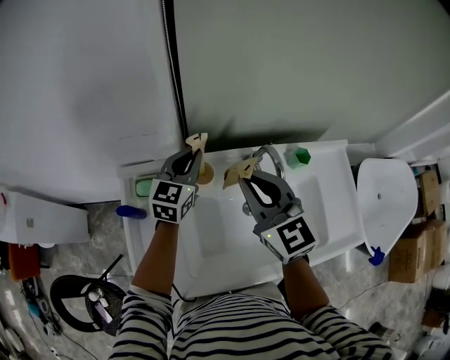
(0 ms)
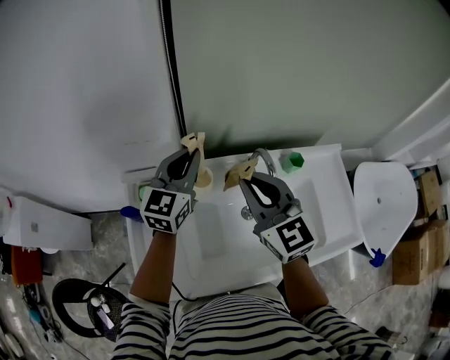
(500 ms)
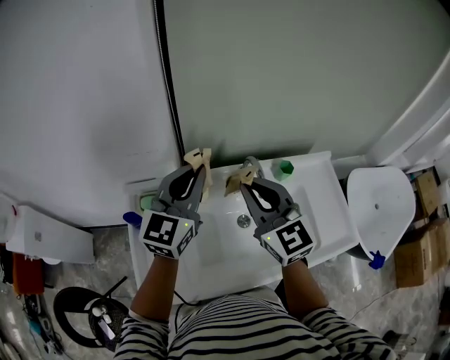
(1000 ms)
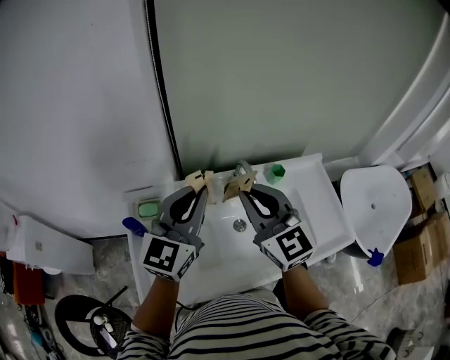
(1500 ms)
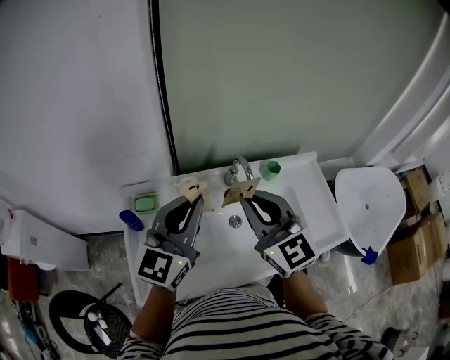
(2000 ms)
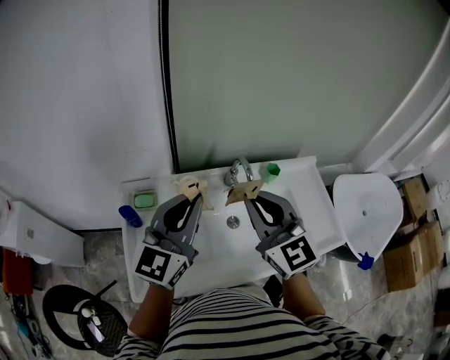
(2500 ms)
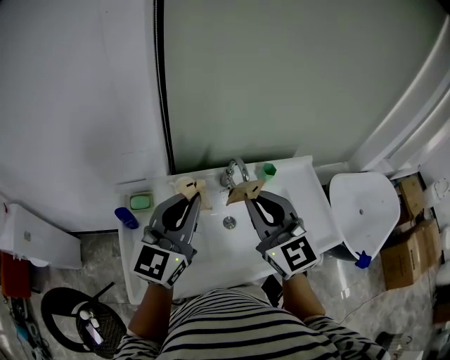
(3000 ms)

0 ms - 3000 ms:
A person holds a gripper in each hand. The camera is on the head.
0 ms - 1500 ms: The left gripper travels upward and backward by some 25 cm, and rotates approximately 20 degrees. Meanwhile the right gripper shifts about 10 cm upward and backward.
1500 ms - 3000 ms: The grippers stay close to where they were, moving slightly.

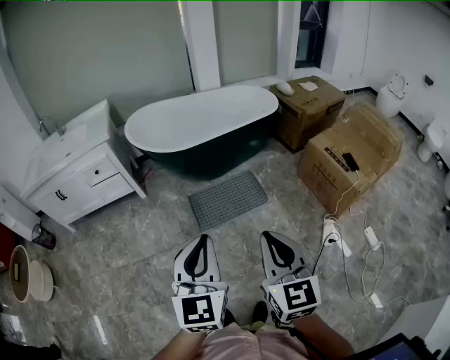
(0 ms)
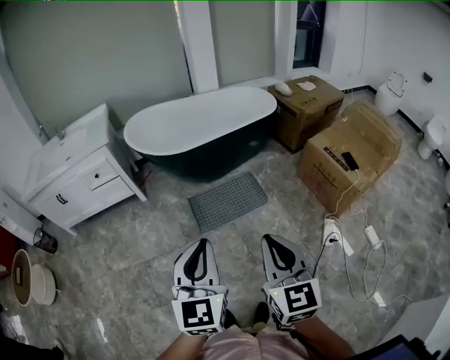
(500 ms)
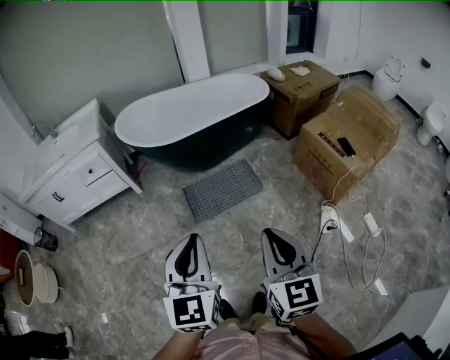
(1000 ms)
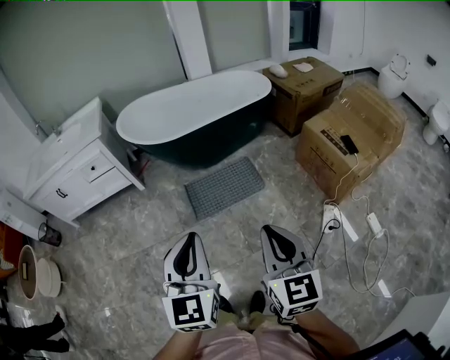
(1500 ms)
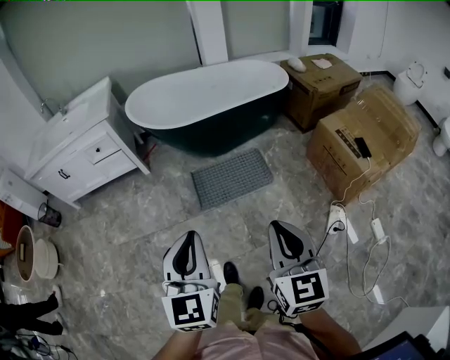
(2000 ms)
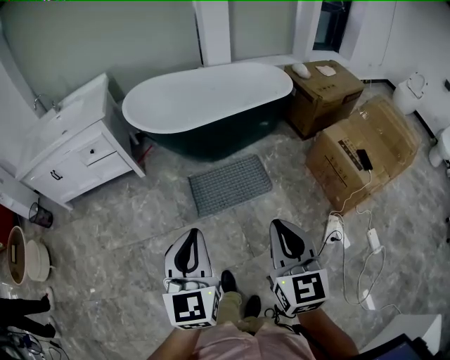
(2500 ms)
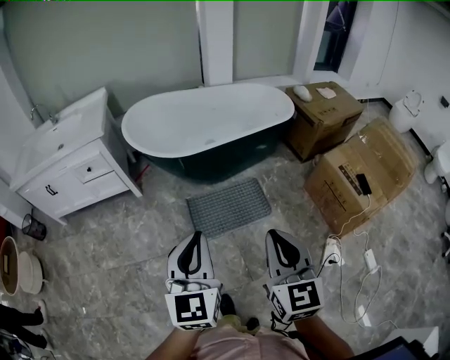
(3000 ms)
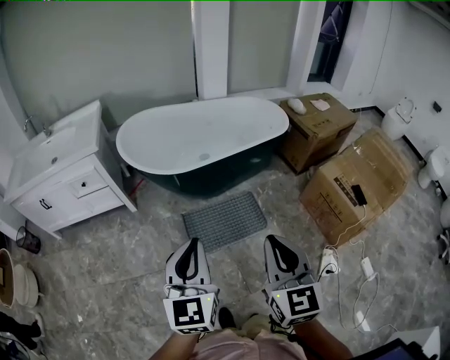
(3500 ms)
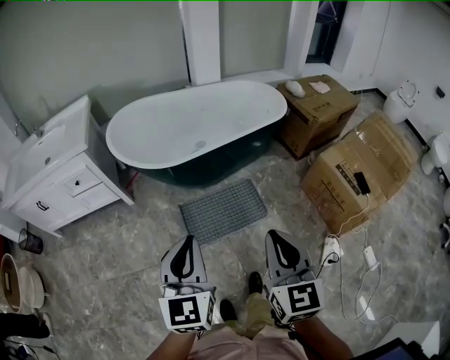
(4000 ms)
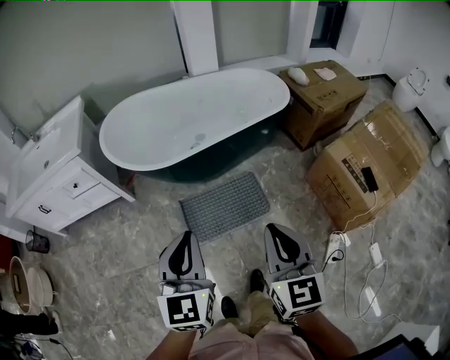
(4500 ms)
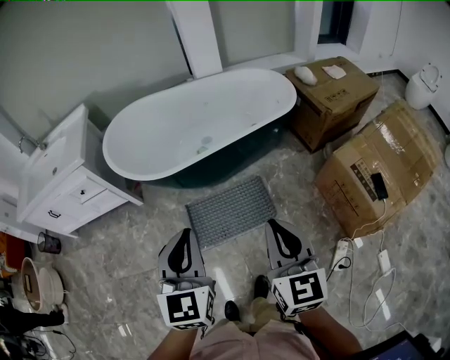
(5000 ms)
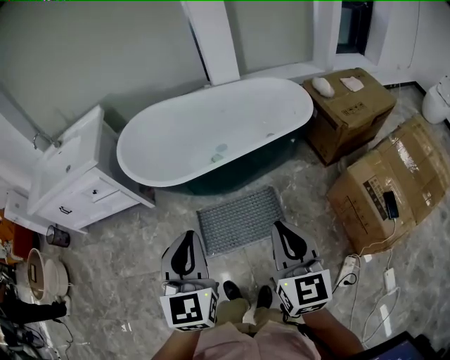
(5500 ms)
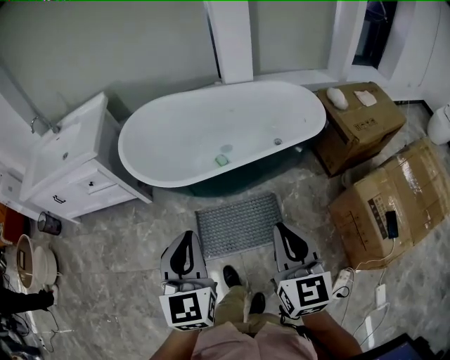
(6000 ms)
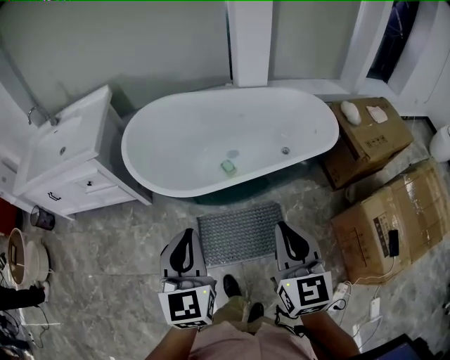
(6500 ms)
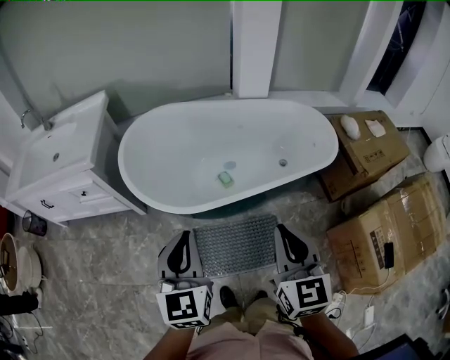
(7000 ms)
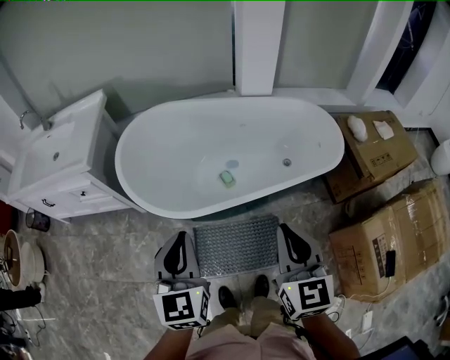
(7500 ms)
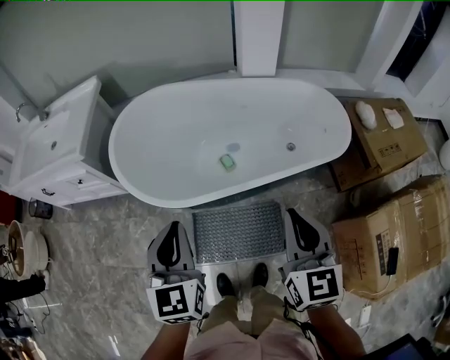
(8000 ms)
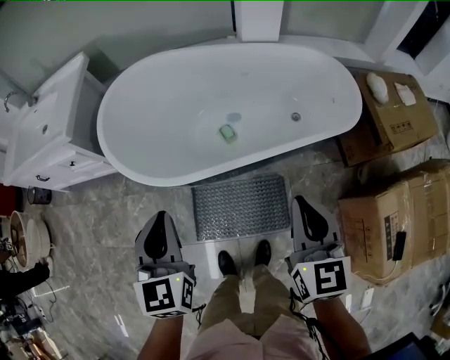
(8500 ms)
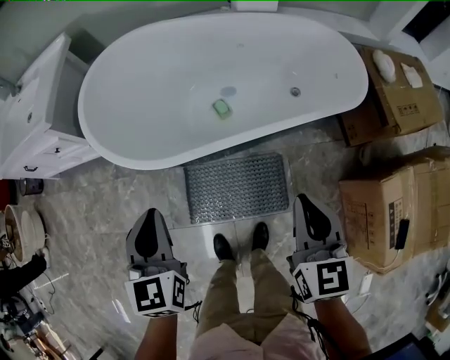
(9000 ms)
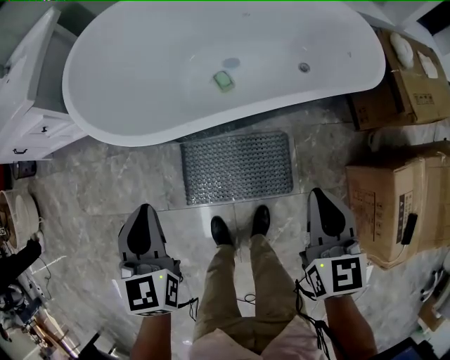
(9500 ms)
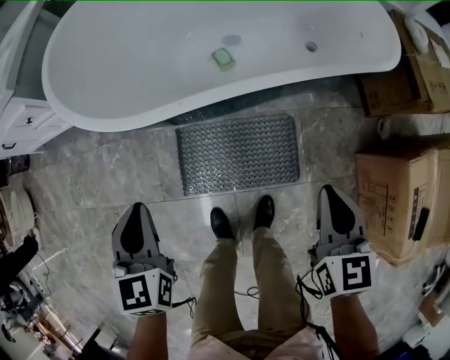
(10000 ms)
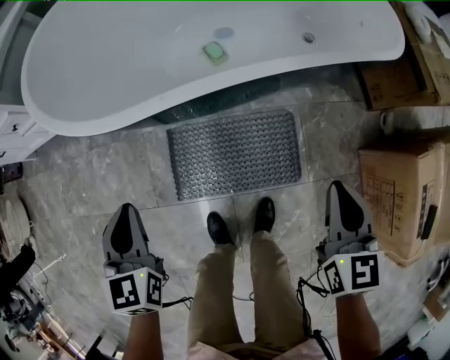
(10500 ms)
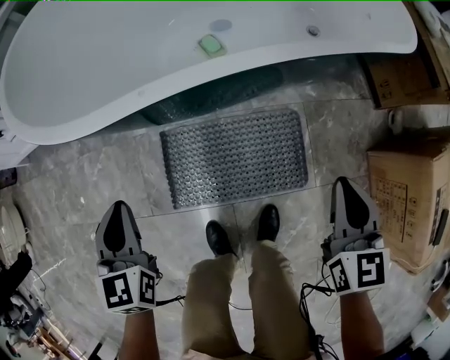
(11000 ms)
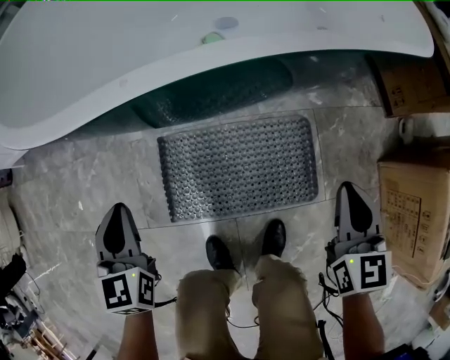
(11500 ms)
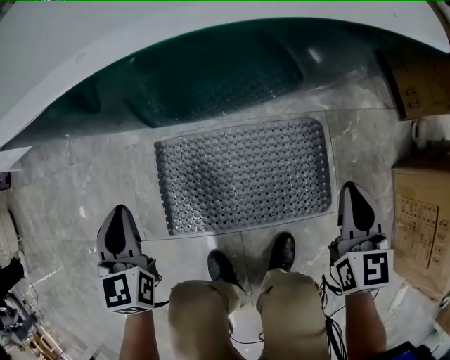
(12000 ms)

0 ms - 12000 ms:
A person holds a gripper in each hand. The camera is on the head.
0 ms - 2000 ms: The right gripper travels to the right by roughly 5 cm.
2000 ms - 4000 ms: Both grippers travel together forward, about 25 cm.
4000 ms - 6000 ms: The left gripper shifts some 20 cm forward; the right gripper goes roughly 25 cm forward and to the right.
6000 ms - 8000 ms: Both grippers move forward, roughly 20 cm.
8000 ms - 10000 ms: Both grippers move downward, some 30 cm.
10000 ms - 12000 ms: Both grippers travel together downward, roughly 30 cm.

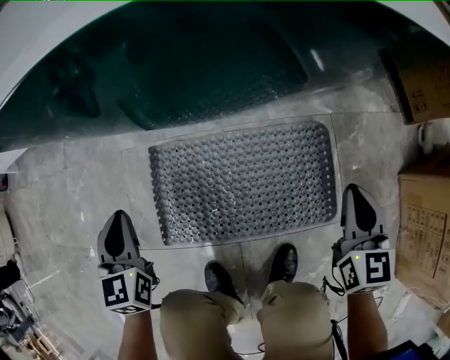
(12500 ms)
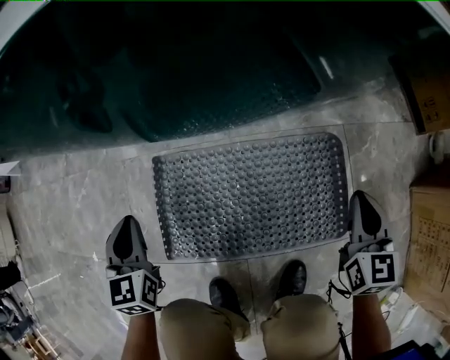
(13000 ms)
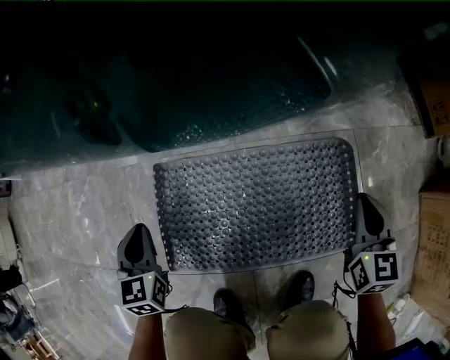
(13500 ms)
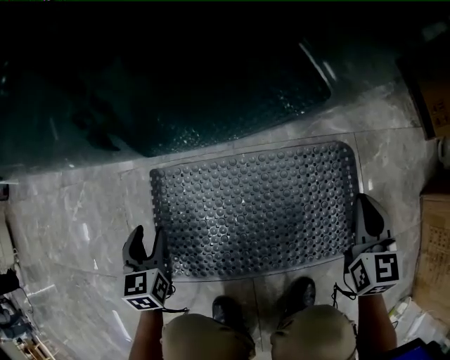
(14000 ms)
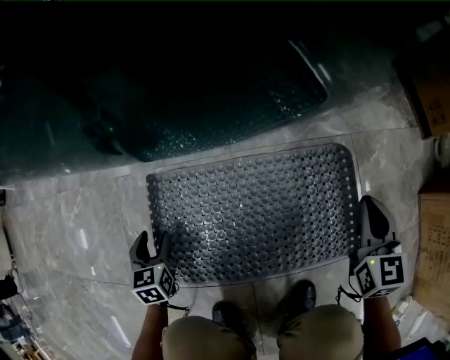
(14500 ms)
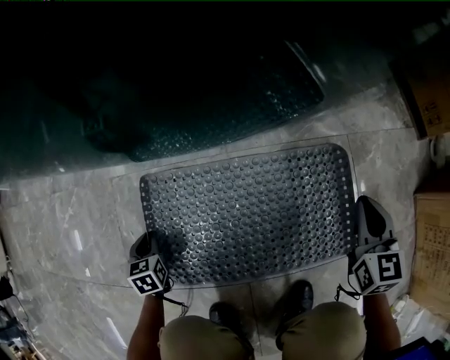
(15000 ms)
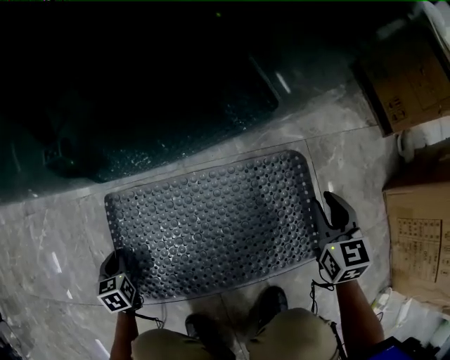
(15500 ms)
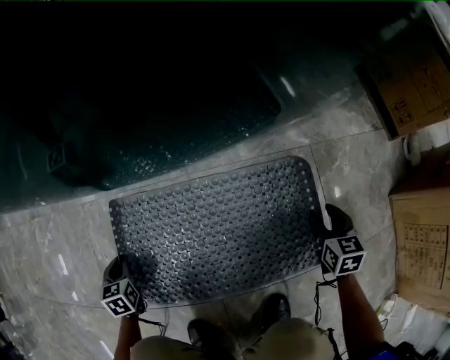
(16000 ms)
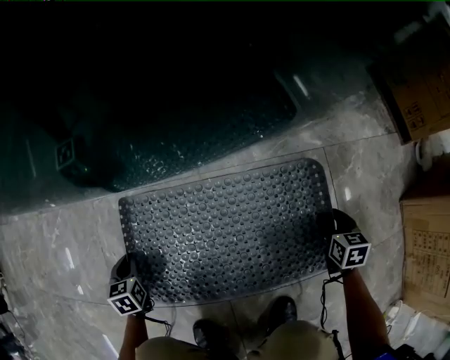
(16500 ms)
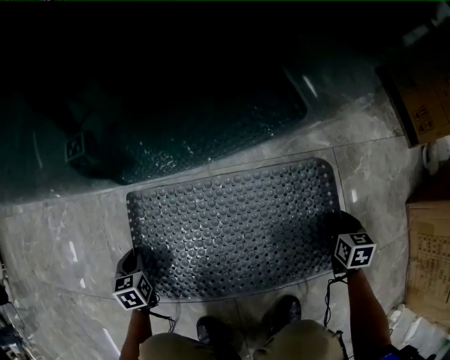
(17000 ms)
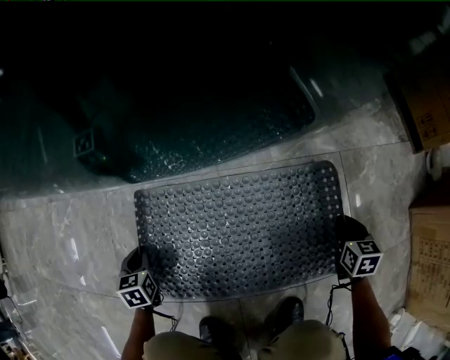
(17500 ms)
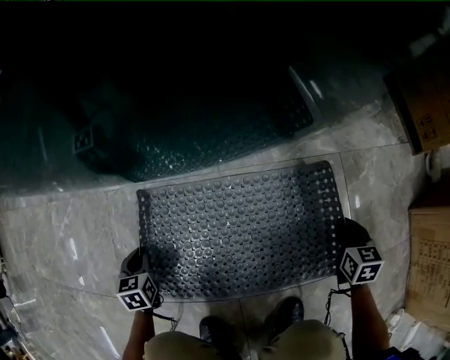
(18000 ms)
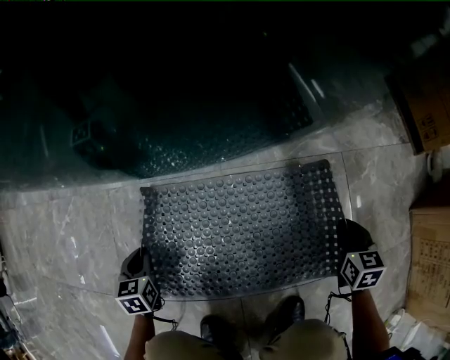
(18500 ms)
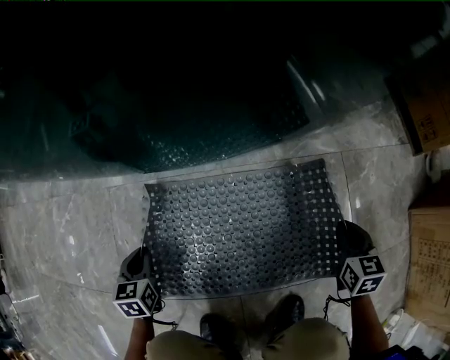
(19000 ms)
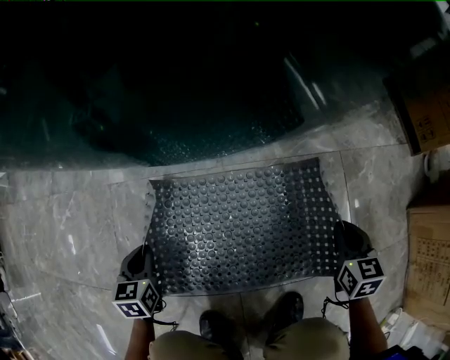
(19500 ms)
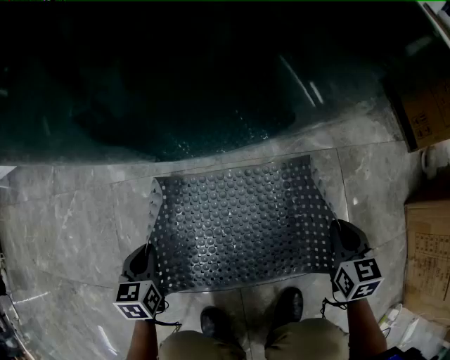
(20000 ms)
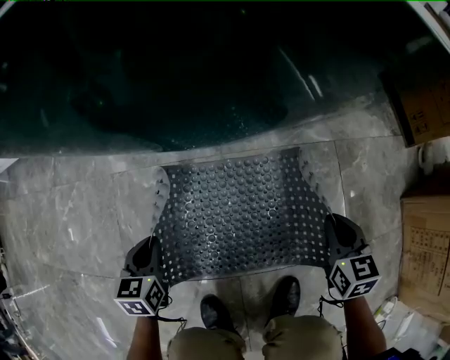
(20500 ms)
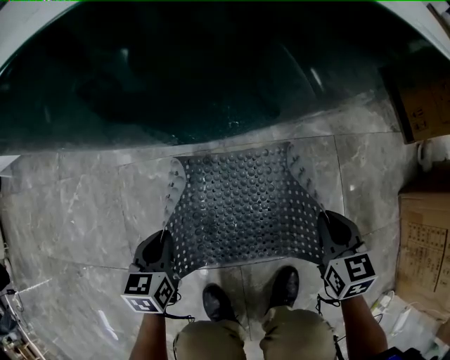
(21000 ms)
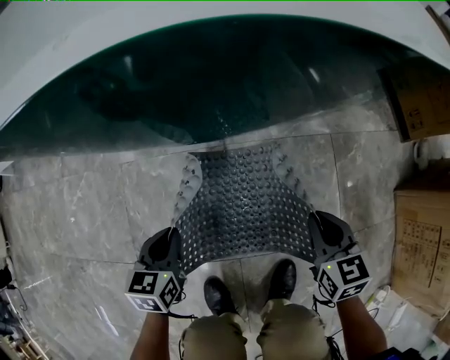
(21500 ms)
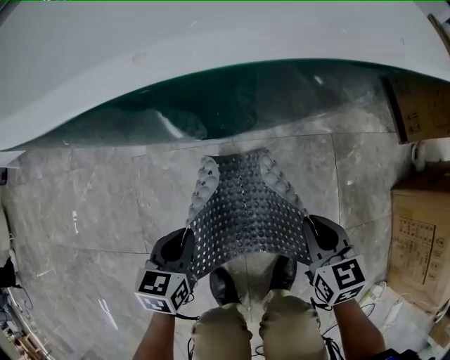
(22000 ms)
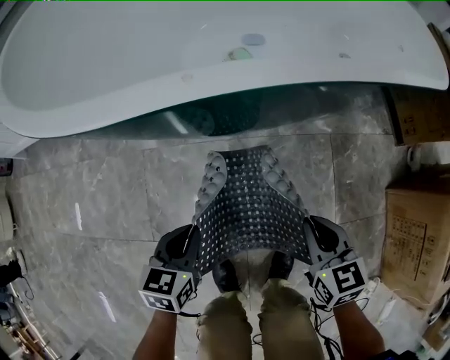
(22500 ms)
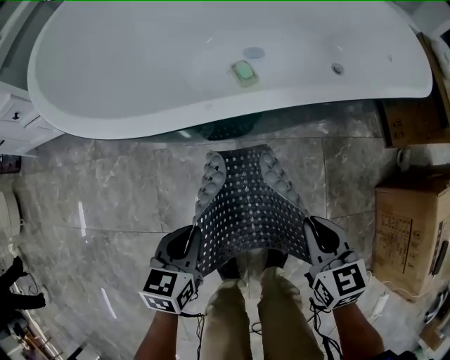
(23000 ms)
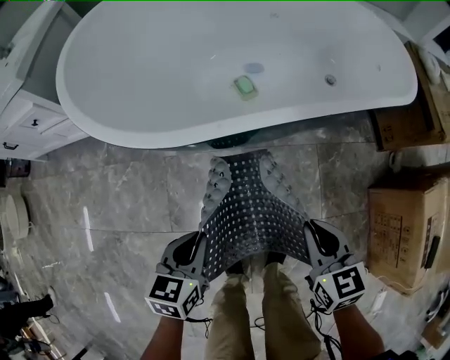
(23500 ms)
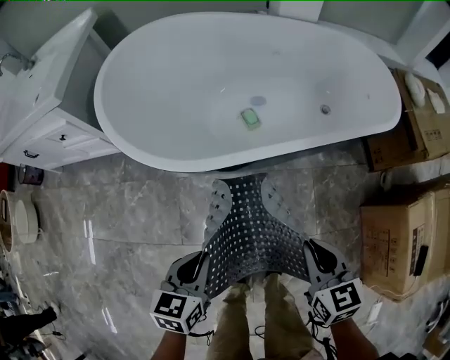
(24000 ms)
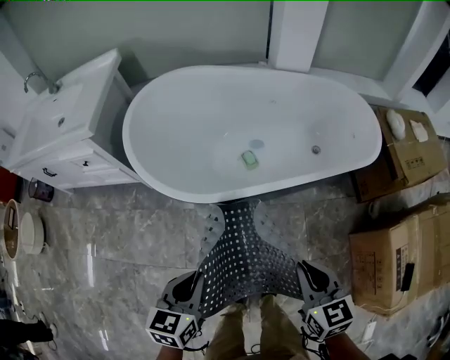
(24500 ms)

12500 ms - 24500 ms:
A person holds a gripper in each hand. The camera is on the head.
12500 ms - 14500 ms: The left gripper moves downward, about 25 cm, and opens. The right gripper shifts roughly 10 cm downward.
14500 ms - 16500 ms: The left gripper changes place by approximately 5 cm, and closes; the right gripper moves downward and to the right, some 20 cm, turns by approximately 30 degrees, and opens.
16500 ms - 18500 ms: The right gripper heads upward, covering some 5 cm, and closes up.
18500 ms - 20500 ms: The right gripper travels upward and to the left by approximately 10 cm, while the left gripper moves upward and to the right, about 10 cm.
20500 ms - 22500 ms: The left gripper shifts about 20 cm upward and to the right. The right gripper travels upward and to the left by some 20 cm.
22500 ms - 24500 ms: Both grippers move upward, approximately 40 cm.
